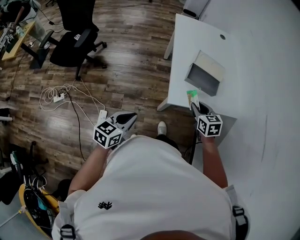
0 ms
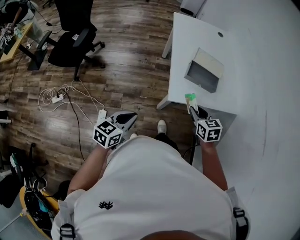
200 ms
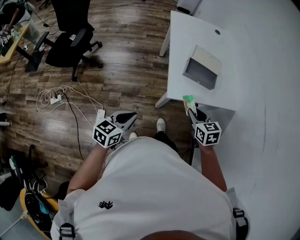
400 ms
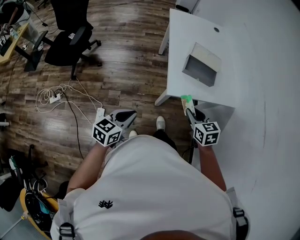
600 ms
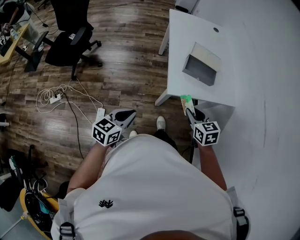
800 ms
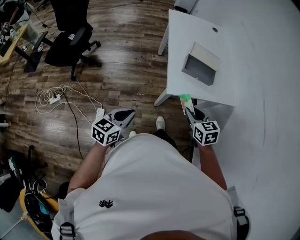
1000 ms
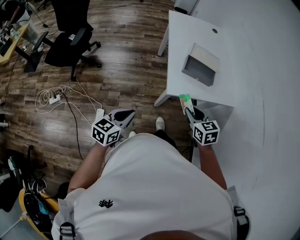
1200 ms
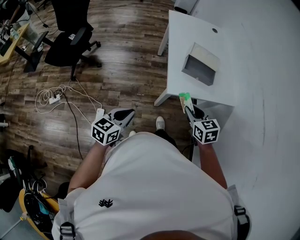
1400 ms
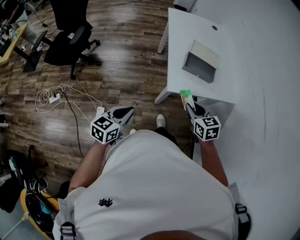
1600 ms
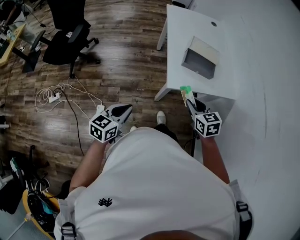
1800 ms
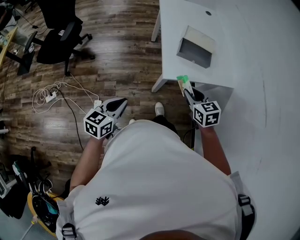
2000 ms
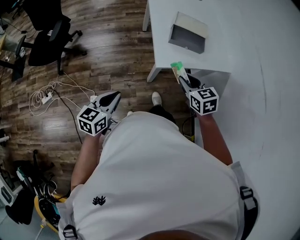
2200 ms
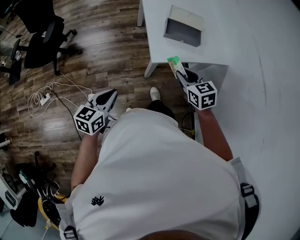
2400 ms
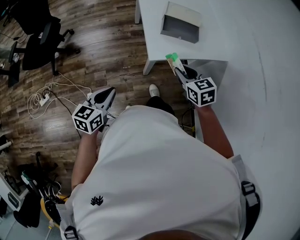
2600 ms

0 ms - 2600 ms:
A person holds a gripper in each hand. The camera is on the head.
0 ms - 1200 ms: The right gripper is displaced backward by roughly 10 cm.
1200 ms - 2600 ms: The grippers stay close to where they were, moving slightly.

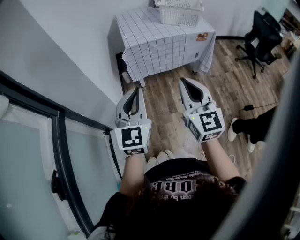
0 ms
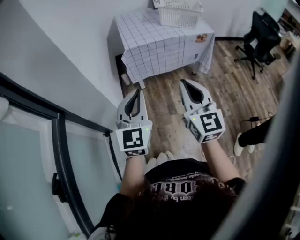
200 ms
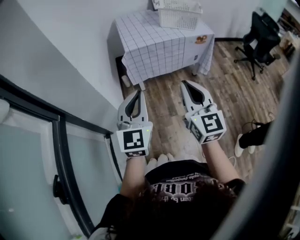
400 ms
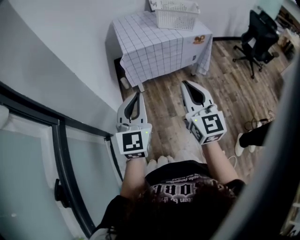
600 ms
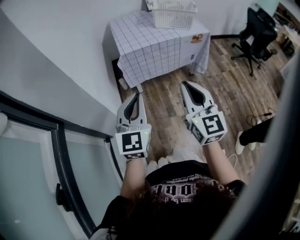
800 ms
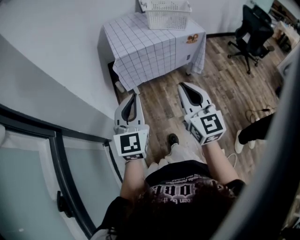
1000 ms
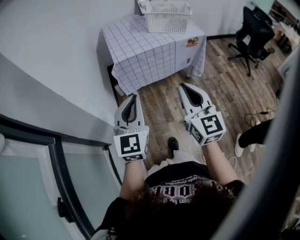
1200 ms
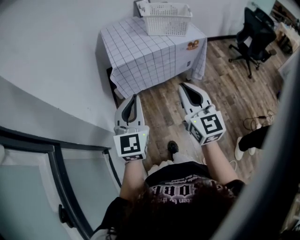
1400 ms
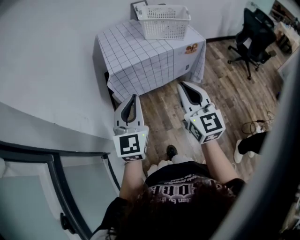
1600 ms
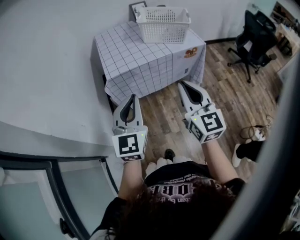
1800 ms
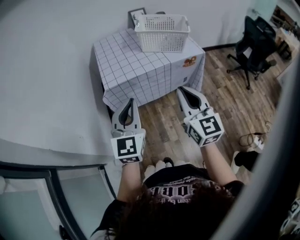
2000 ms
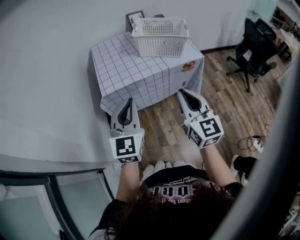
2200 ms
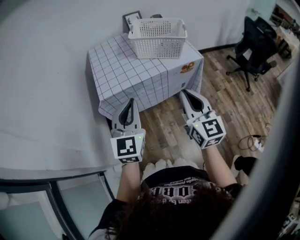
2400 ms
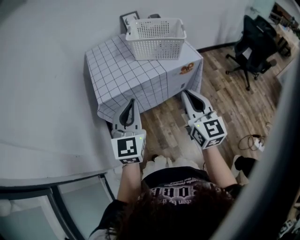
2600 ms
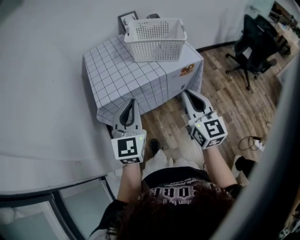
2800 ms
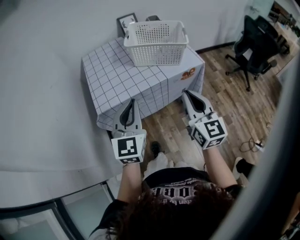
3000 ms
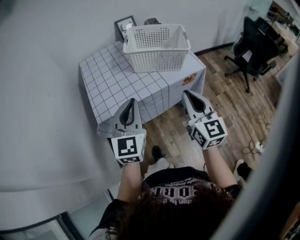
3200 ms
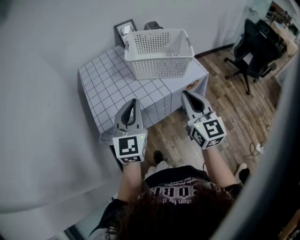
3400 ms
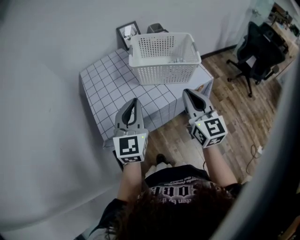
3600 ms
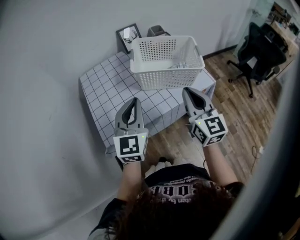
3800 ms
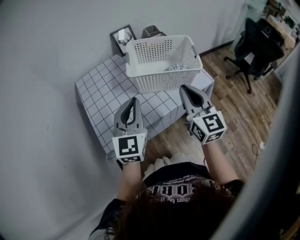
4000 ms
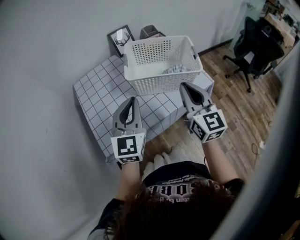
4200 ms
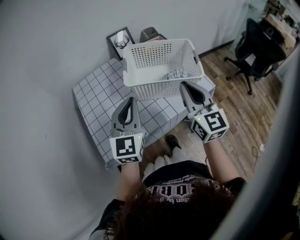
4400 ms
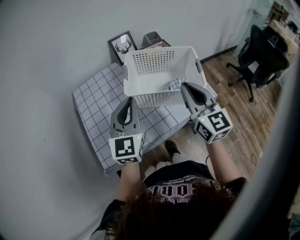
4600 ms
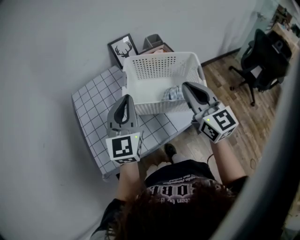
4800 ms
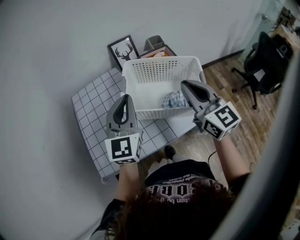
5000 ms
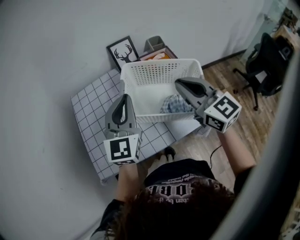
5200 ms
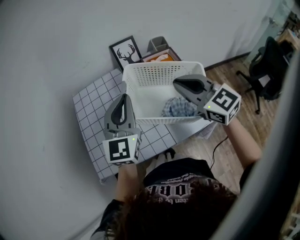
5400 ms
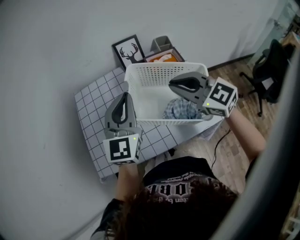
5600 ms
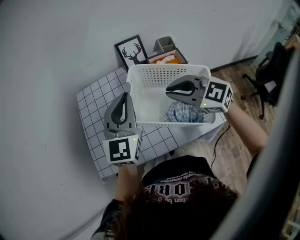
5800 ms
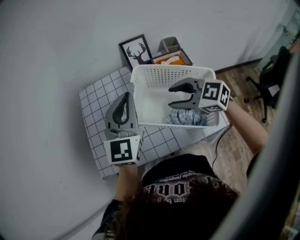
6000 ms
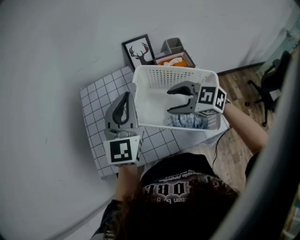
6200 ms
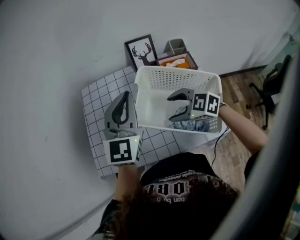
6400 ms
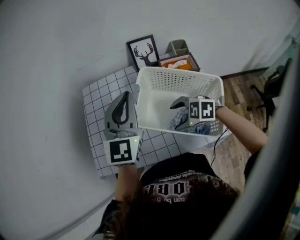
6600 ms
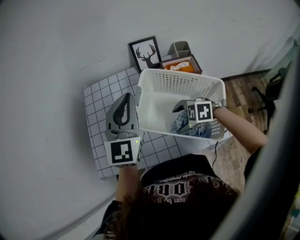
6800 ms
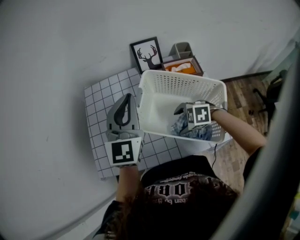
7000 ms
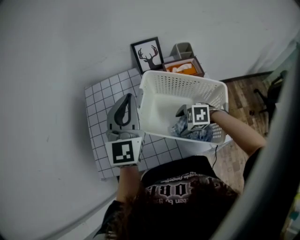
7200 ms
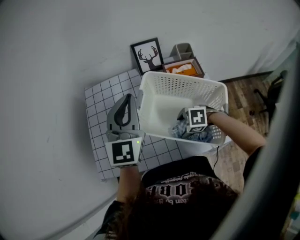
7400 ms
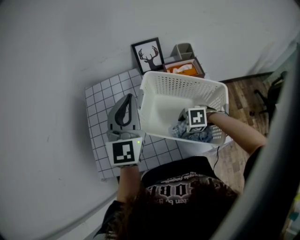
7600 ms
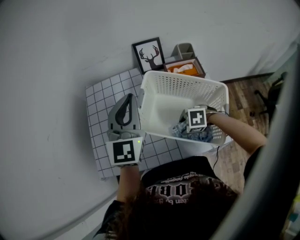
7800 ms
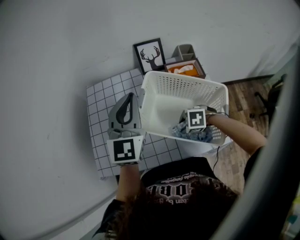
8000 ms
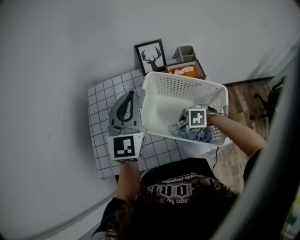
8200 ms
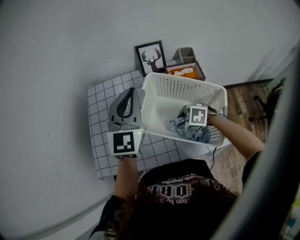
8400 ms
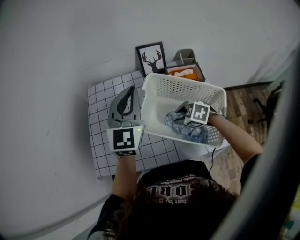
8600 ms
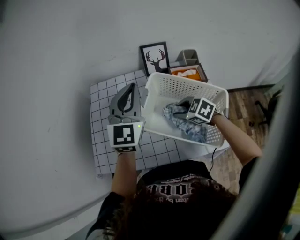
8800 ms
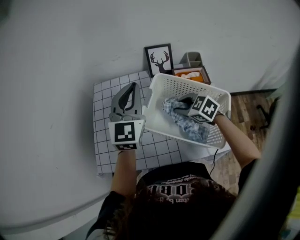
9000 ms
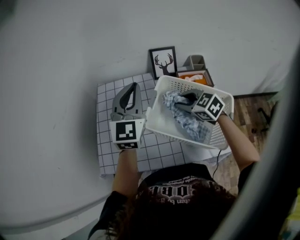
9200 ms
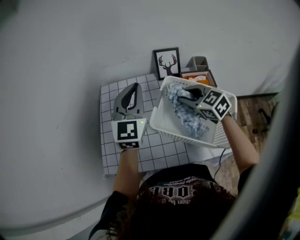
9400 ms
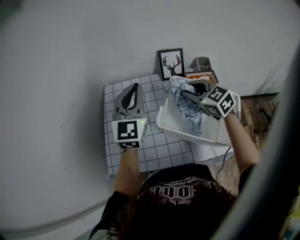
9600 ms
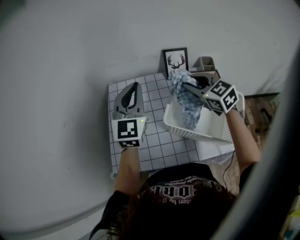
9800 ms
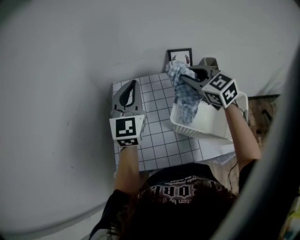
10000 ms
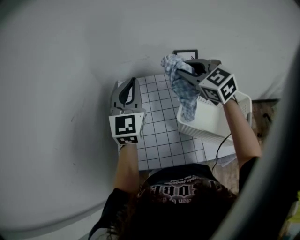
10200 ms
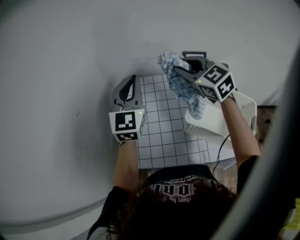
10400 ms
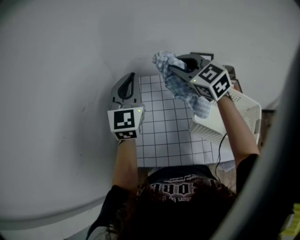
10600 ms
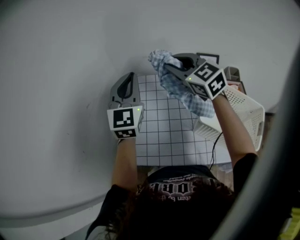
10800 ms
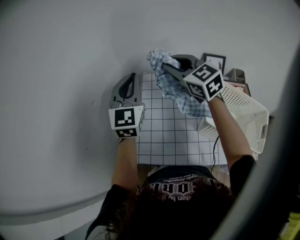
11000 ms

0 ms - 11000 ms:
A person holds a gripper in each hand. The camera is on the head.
0 ms - 1600 ms: Both grippers move forward and to the right, roughly 15 cm.
1600 ms - 3200 ms: Both grippers move forward, about 30 cm.
3200 ms - 4800 ms: Both grippers move forward, about 30 cm.
4800 ms - 6200 ms: The left gripper shifts by roughly 10 cm; the right gripper changes place by roughly 15 cm, angles its fingers downward, by approximately 30 degrees, and opens up.
6200 ms - 7800 ms: The right gripper shifts roughly 20 cm downward, and tips its fingers downward by approximately 40 degrees.
7800 ms - 9400 ms: The right gripper moves upward, about 20 cm, and tips its fingers upward by about 40 degrees. Meanwhile the left gripper ends up approximately 5 cm from where it was.
9400 ms - 11000 ms: The right gripper is displaced to the left, upward and forward by about 35 cm, and changes its angle by roughly 20 degrees. The left gripper is displaced to the left by about 25 cm.

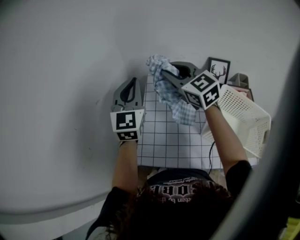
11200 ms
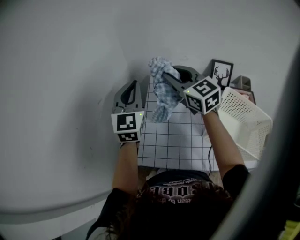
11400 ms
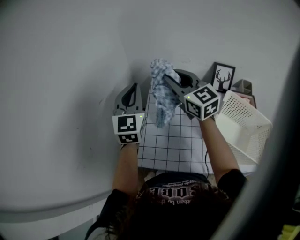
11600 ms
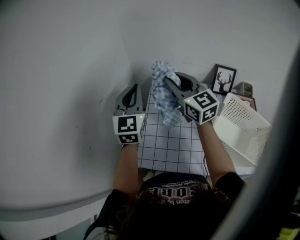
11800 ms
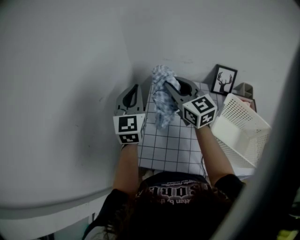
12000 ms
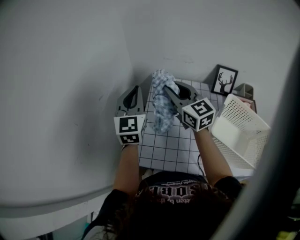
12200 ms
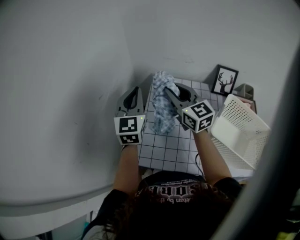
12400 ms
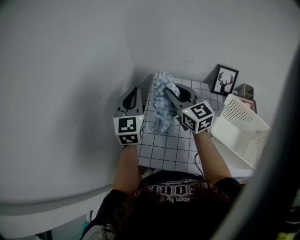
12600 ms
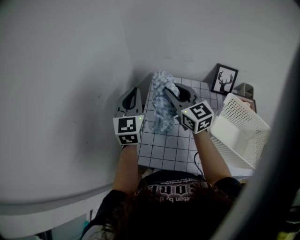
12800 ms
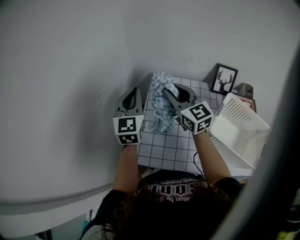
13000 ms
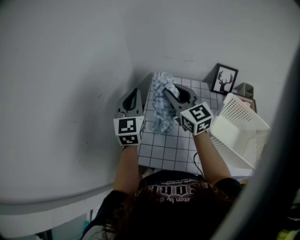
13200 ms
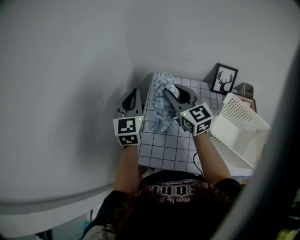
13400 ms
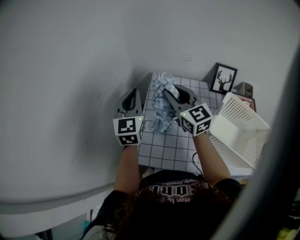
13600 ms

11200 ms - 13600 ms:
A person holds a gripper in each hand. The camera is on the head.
11200 ms - 12400 ms: Both grippers travel together downward, approximately 5 cm.
12400 ms - 13600 ms: There are only small adjustments of the grippers.

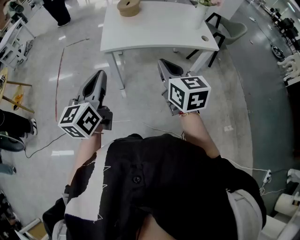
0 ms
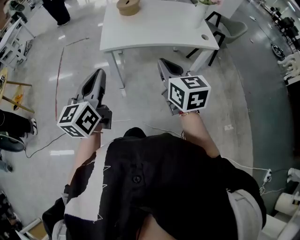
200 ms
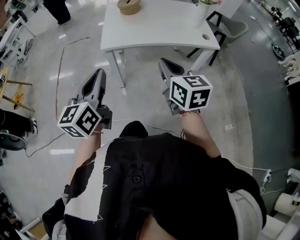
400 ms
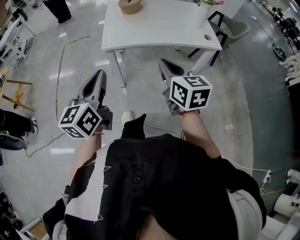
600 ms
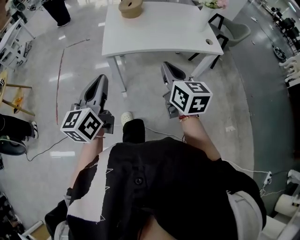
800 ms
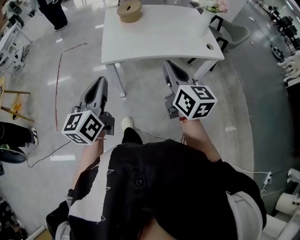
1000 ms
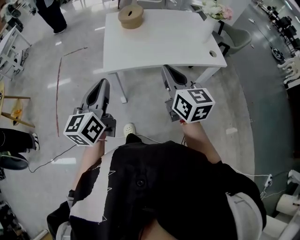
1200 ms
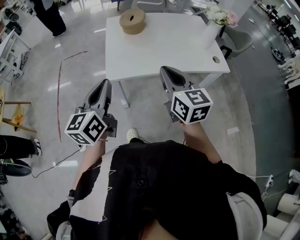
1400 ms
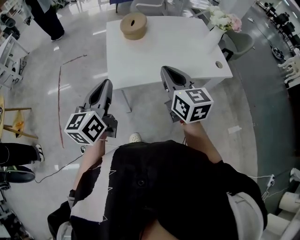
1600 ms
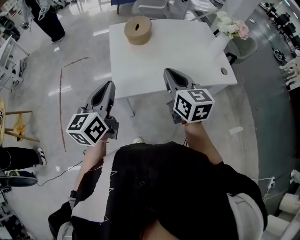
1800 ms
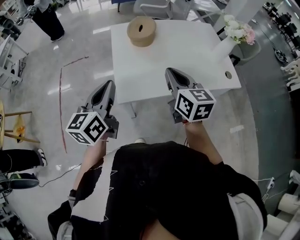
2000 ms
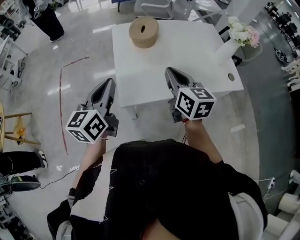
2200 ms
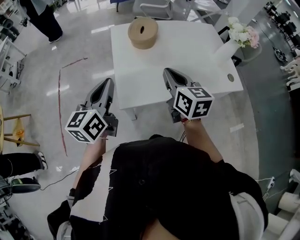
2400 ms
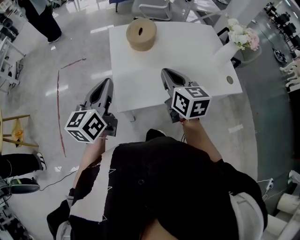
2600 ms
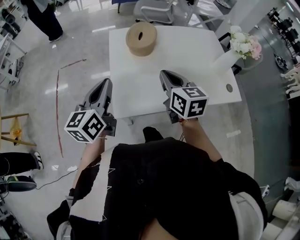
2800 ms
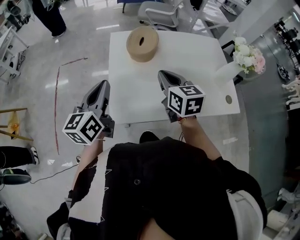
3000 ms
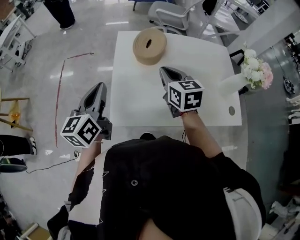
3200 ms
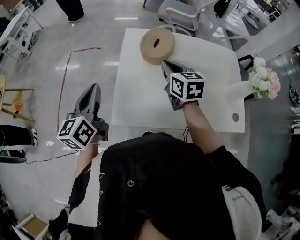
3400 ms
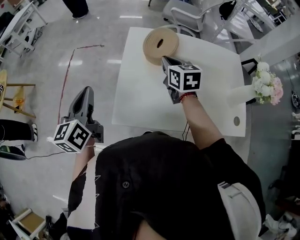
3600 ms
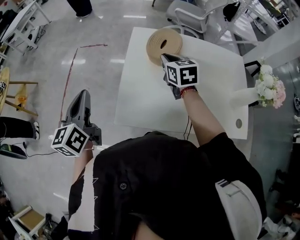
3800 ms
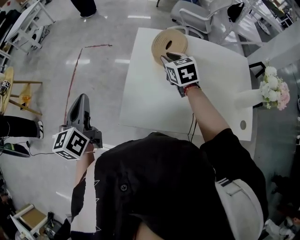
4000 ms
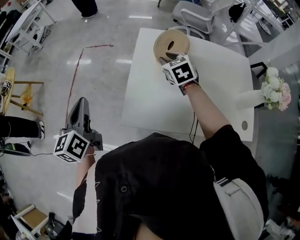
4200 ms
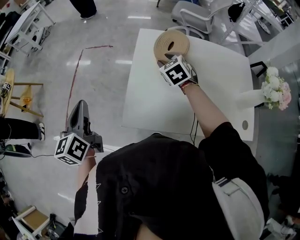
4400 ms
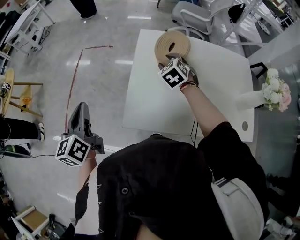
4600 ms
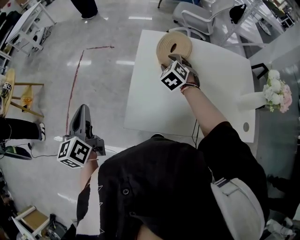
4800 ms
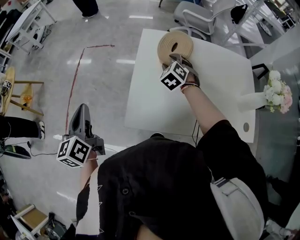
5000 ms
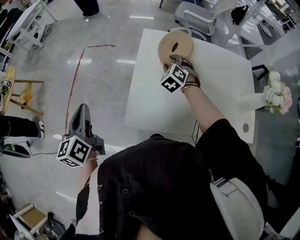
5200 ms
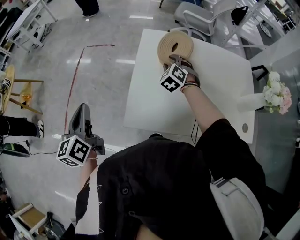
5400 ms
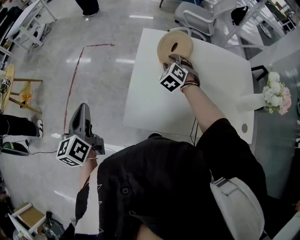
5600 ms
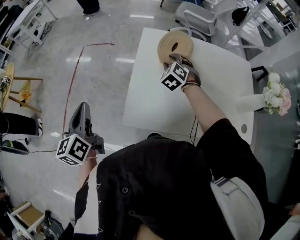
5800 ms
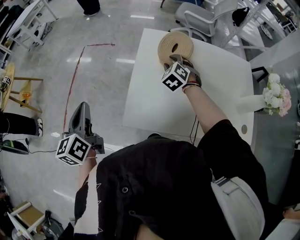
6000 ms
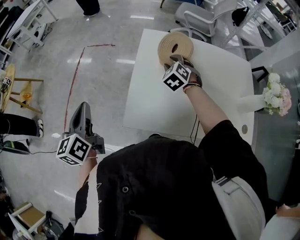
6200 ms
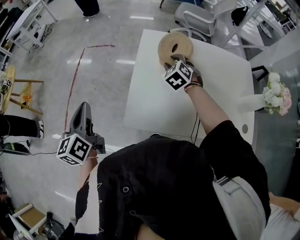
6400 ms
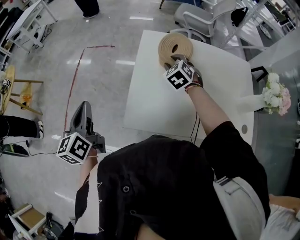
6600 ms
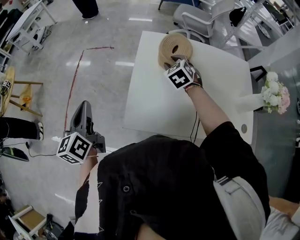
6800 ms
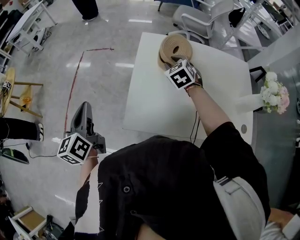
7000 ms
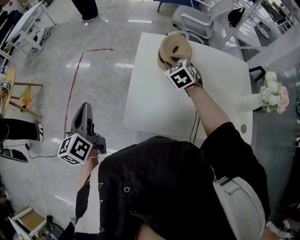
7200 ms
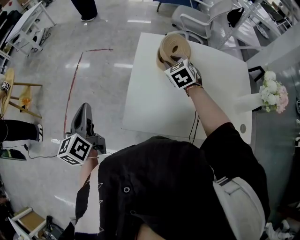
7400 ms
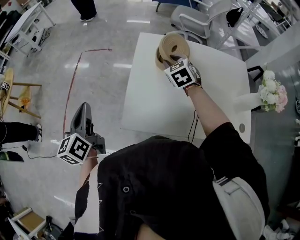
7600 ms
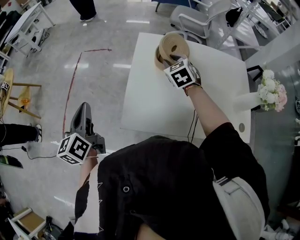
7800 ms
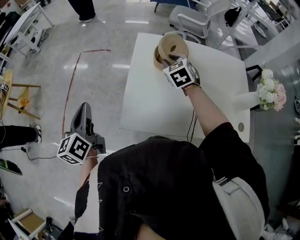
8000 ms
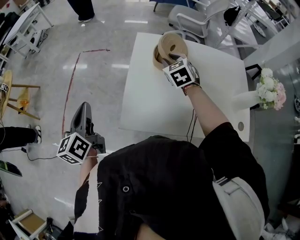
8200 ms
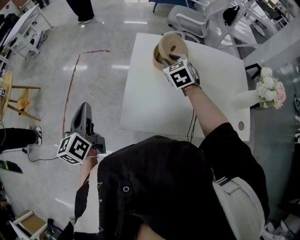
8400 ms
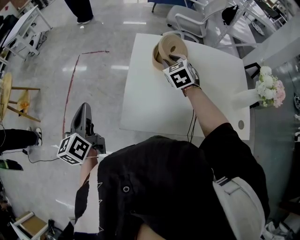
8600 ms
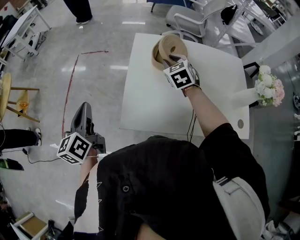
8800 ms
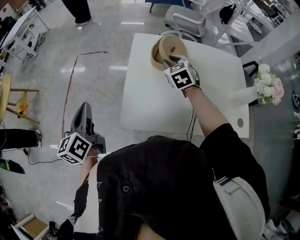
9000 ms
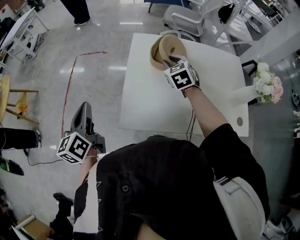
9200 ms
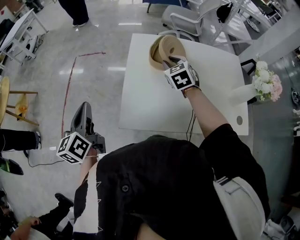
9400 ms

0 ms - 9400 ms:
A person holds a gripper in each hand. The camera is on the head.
0 ms - 1600 ms: The two grippers go some 20 cm forward.
1600 ms - 3200 ms: The two grippers go about 25 cm forward.
3200 ms - 4800 ms: The left gripper goes approximately 15 cm to the left, and changes its angle by some 20 degrees. The right gripper is displaced forward and downward by approximately 15 cm, rotates around the line of its fingers by about 40 degrees, counterclockwise from behind, and opens up.
4800 ms - 6200 ms: The grippers stay close to where they were, moving slightly.
6200 ms - 7800 ms: The right gripper shifts roughly 5 cm upward.
7800 ms - 9400 ms: The grippers stay close to where they were, moving slightly.
